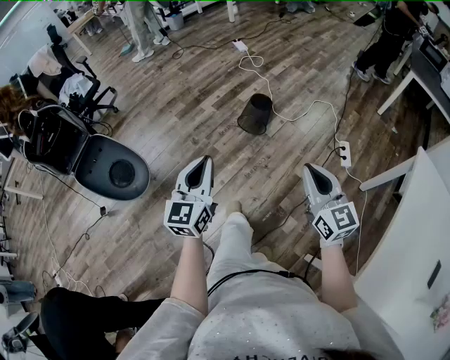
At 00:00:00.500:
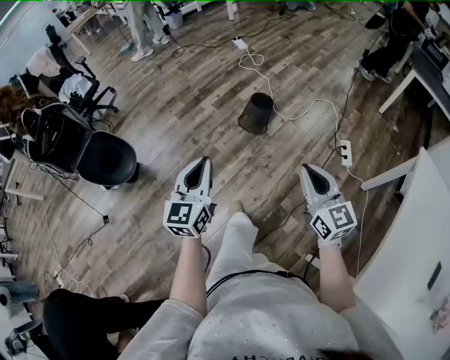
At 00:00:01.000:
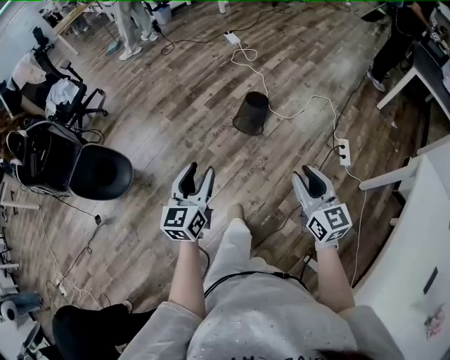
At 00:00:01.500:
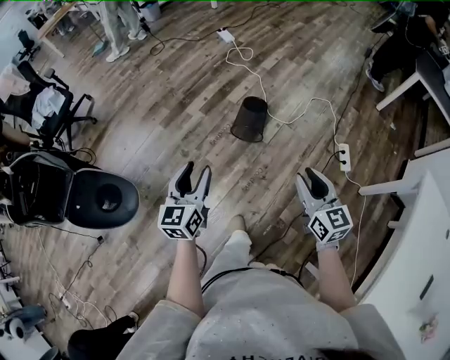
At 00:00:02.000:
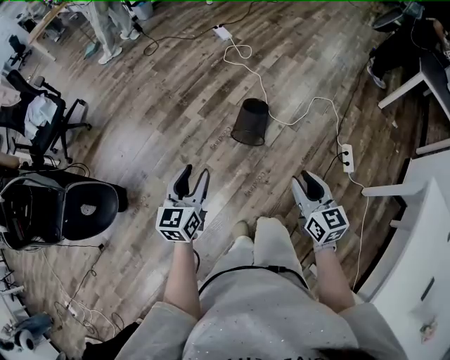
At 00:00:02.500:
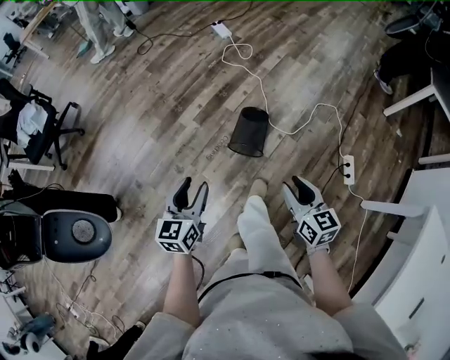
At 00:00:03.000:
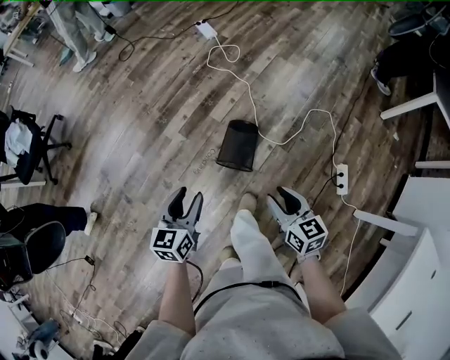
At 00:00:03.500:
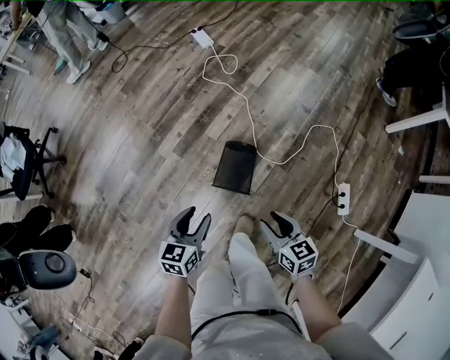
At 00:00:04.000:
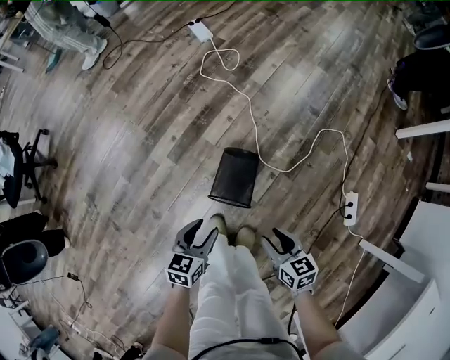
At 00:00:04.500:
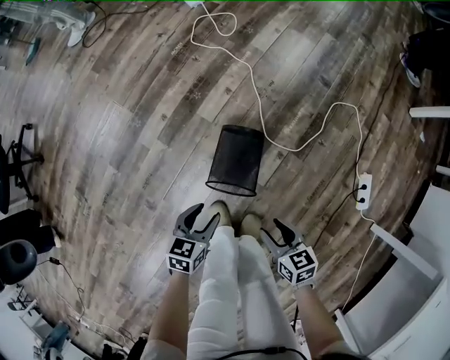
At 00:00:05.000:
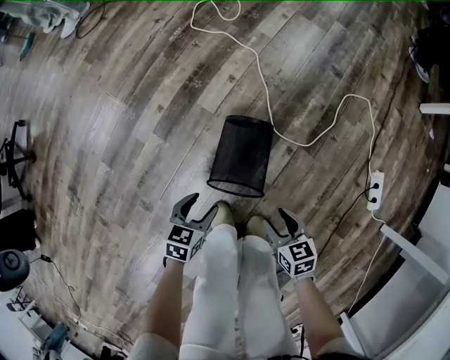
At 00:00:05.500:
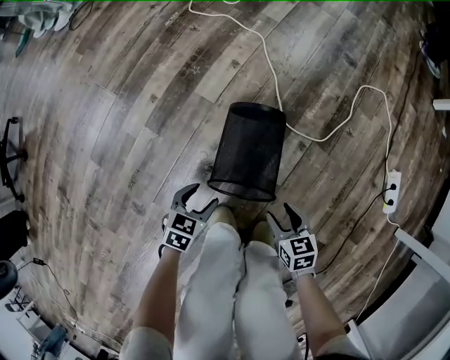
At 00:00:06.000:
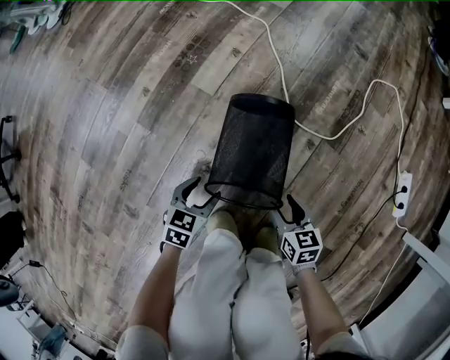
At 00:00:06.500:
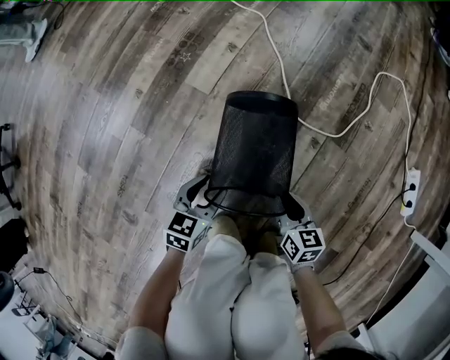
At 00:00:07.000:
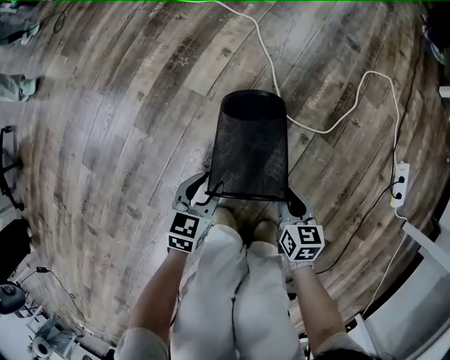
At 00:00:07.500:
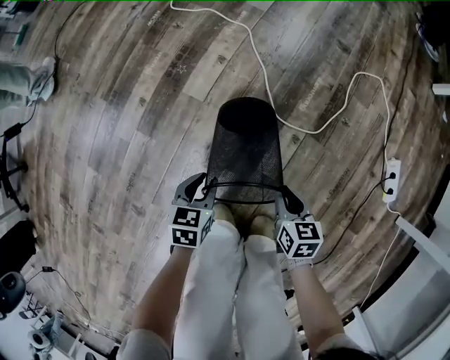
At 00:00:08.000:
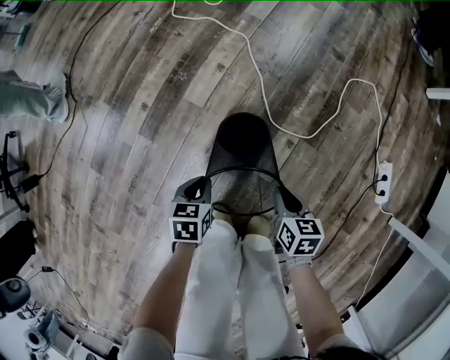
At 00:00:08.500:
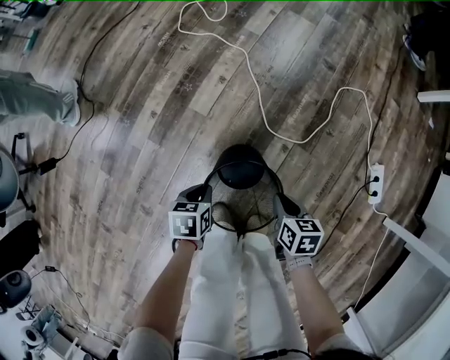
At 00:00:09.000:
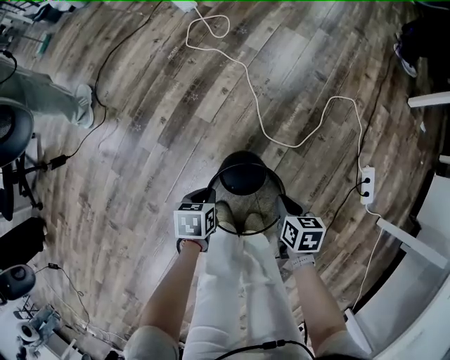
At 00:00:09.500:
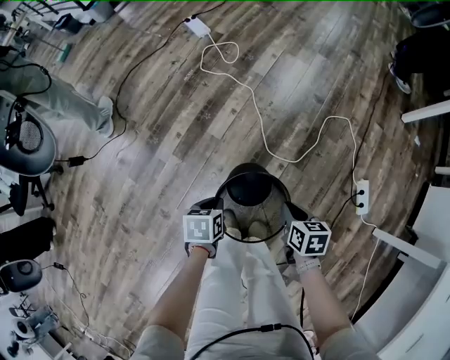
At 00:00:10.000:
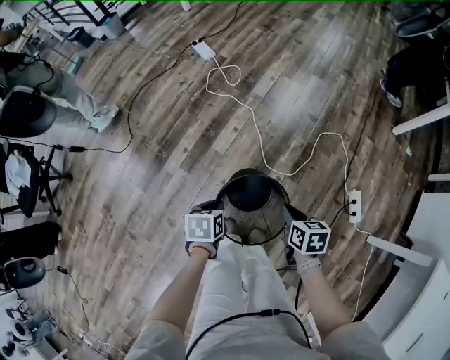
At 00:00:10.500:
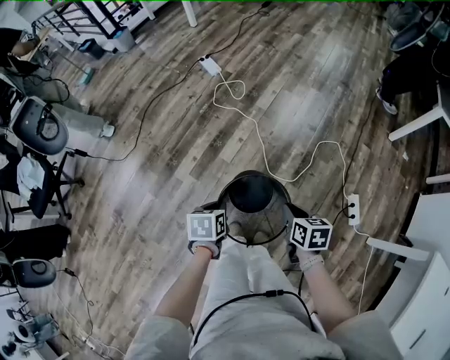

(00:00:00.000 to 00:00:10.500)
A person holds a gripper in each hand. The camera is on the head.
00:00:00.000 - 00:00:02.000: The right gripper moves forward and downward, approximately 35 cm, and opens up, while the left gripper heads forward, covering some 35 cm, and opens up.
00:00:02.000 - 00:00:04.000: The left gripper shifts approximately 50 cm forward, downward and to the right, and rotates about 30 degrees. Meanwhile the right gripper shifts about 50 cm forward and downward, and turns by roughly 30 degrees.
00:00:04.000 - 00:00:06.500: Both grippers travel together downward, some 50 cm.
00:00:06.500 - 00:00:08.500: The two grippers go roughly 20 cm upward. The left gripper turns by roughly 30 degrees, and closes.
00:00:08.500 - 00:00:10.500: The grippers both shift upward by roughly 40 cm.

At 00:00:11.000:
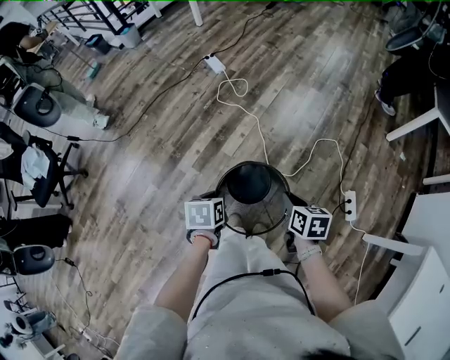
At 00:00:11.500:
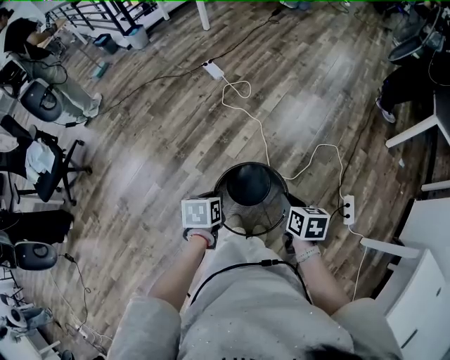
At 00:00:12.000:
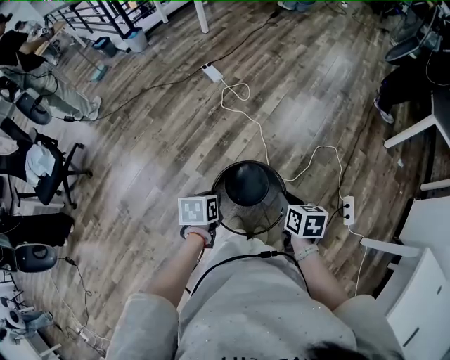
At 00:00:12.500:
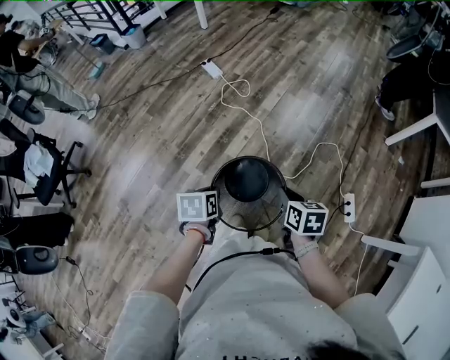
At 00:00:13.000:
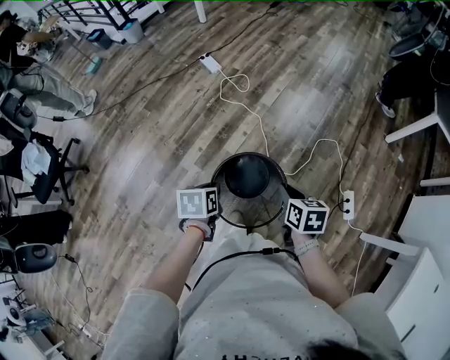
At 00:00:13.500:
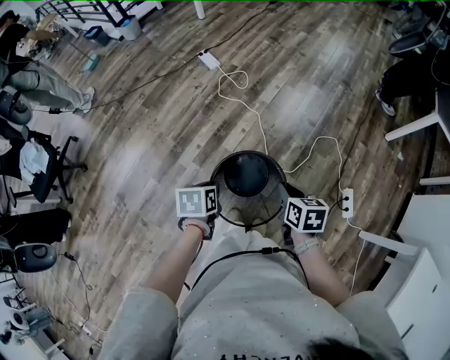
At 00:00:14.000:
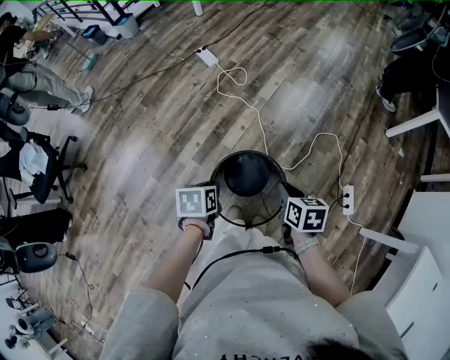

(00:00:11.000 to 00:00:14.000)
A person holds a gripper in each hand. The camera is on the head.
00:00:11.000 - 00:00:12.500: The left gripper moves some 5 cm, while the right gripper moves upward, some 5 cm.
00:00:12.500 - 00:00:14.000: There are only small adjustments of the grippers.

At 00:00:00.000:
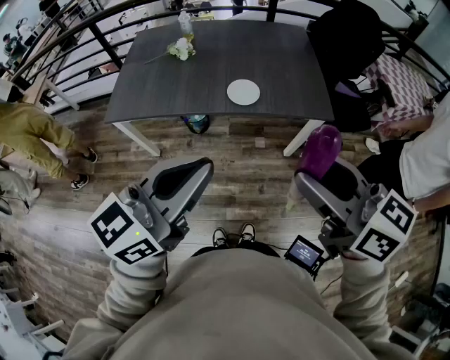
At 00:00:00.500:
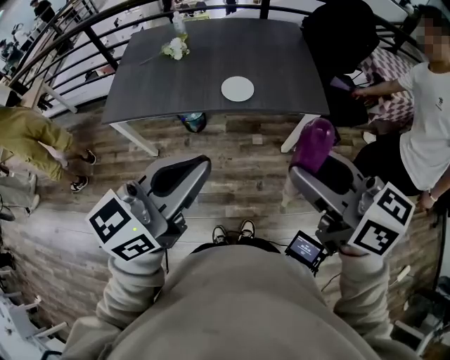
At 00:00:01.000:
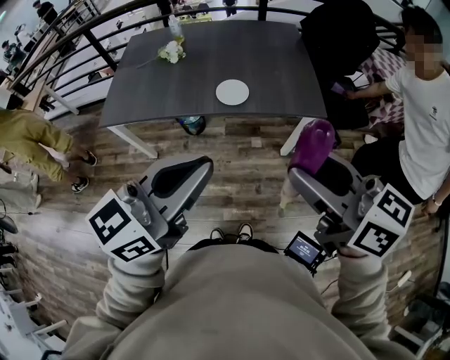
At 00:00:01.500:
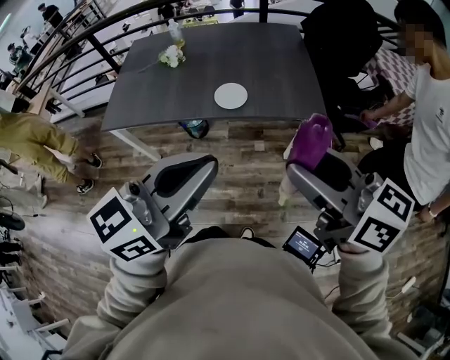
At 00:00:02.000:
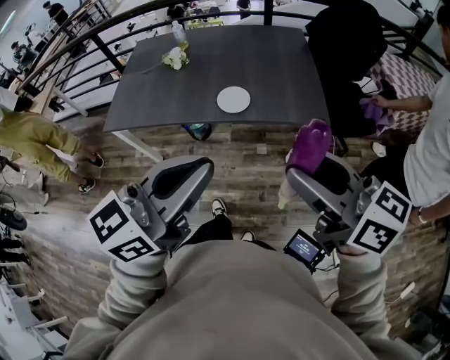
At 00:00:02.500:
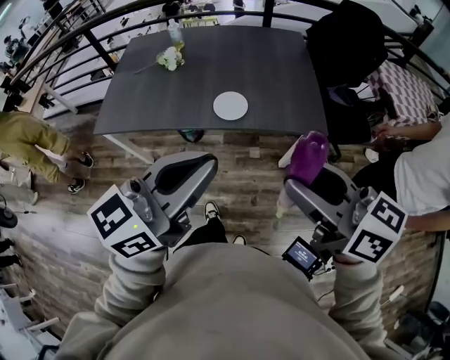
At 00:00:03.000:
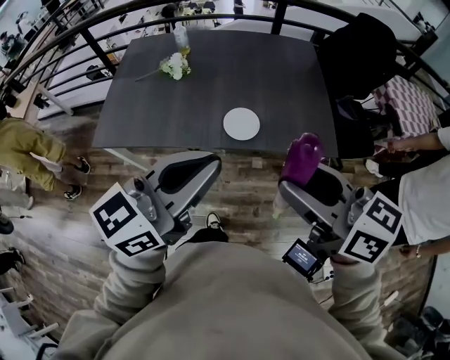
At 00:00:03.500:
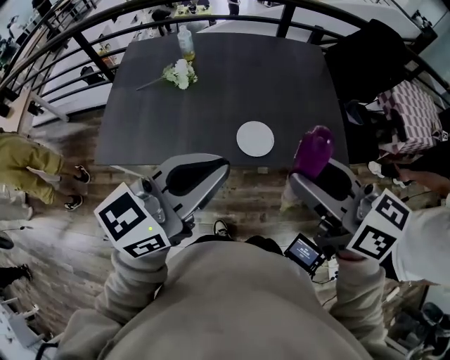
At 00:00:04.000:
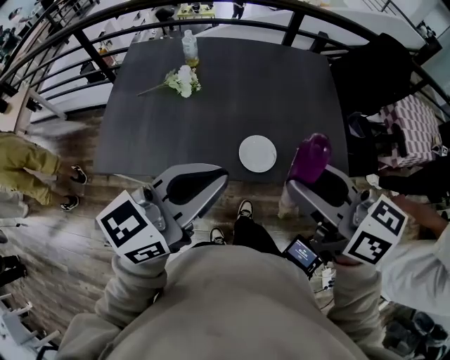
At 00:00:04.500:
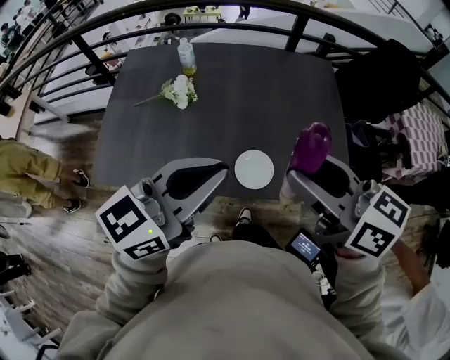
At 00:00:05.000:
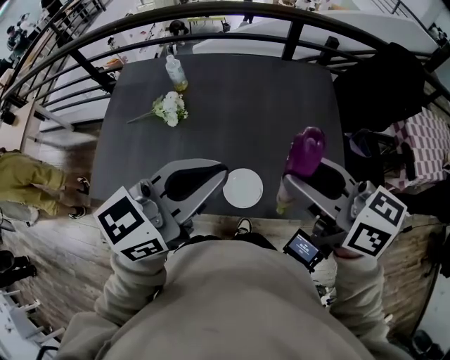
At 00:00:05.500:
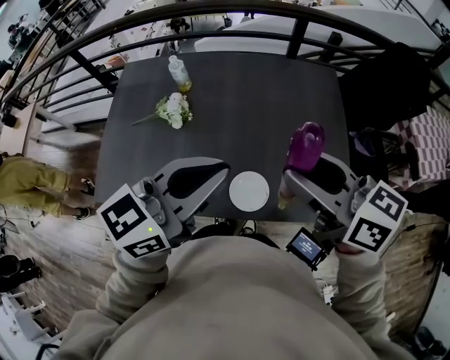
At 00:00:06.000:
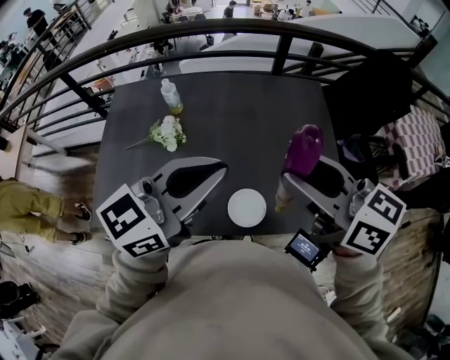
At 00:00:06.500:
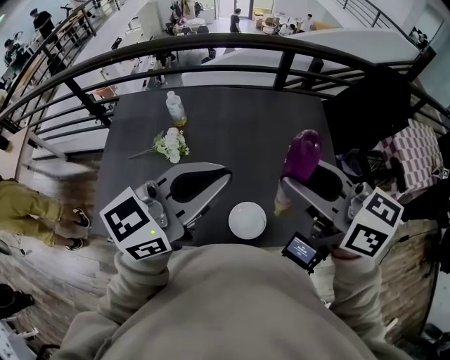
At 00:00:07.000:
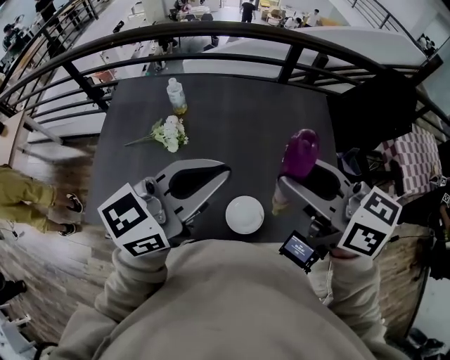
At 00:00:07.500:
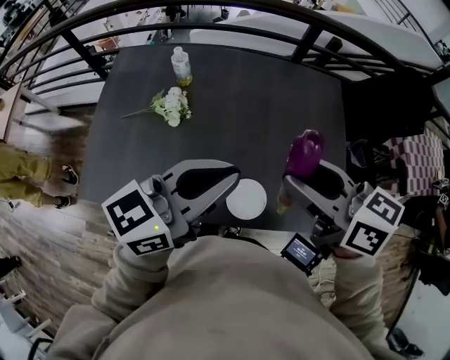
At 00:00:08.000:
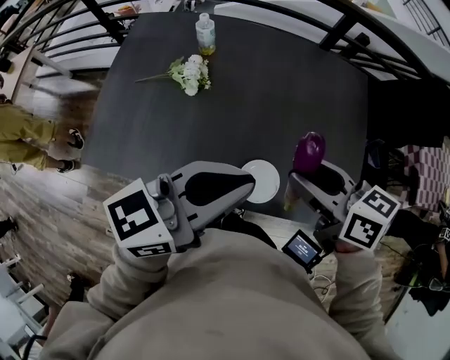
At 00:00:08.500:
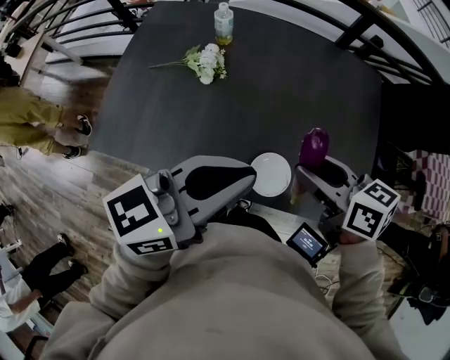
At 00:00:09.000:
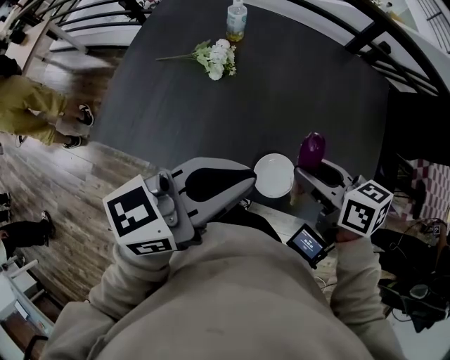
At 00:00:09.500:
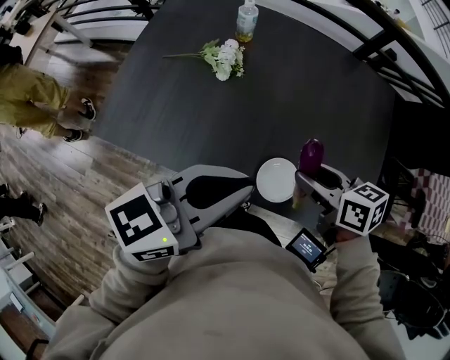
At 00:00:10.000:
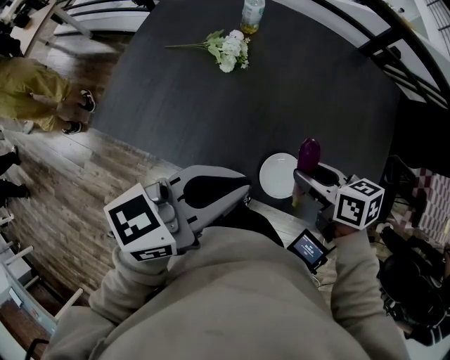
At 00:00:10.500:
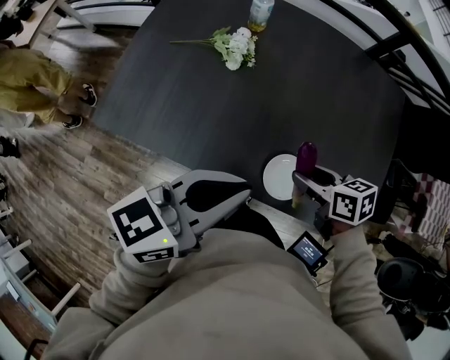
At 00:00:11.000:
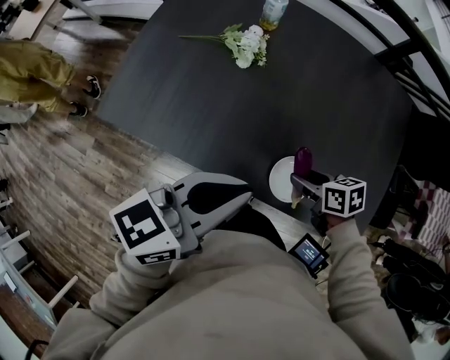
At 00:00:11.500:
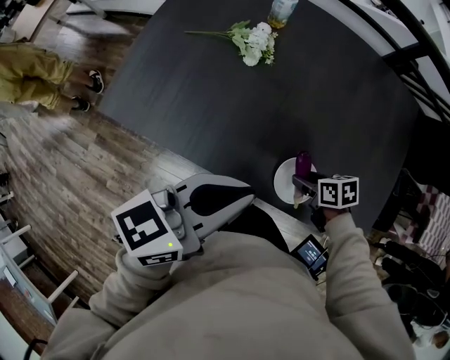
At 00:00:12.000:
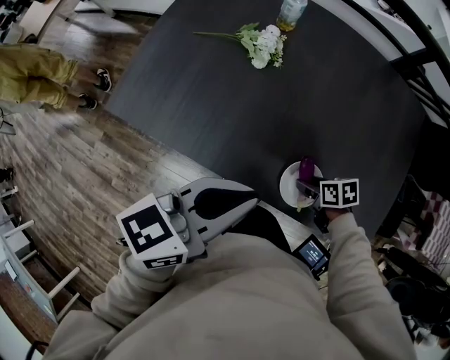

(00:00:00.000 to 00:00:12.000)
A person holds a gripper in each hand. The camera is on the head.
00:00:00.000 - 00:00:02.000: Both grippers travel together to the right, roughly 10 cm.
00:00:02.000 - 00:00:04.000: Both grippers travel together forward and to the left, roughly 30 cm.
00:00:04.000 - 00:00:06.000: The two grippers go roughly 20 cm forward.
00:00:06.000 - 00:00:08.000: The left gripper moves downward, roughly 5 cm, while the right gripper travels downward by about 15 cm, and swivels some 20 degrees.
00:00:08.000 - 00:00:10.000: The right gripper moves downward, roughly 15 cm. The left gripper shifts about 10 cm to the left and downward.
00:00:10.000 - 00:00:12.000: The left gripper moves approximately 5 cm. The right gripper travels downward by roughly 20 cm, and changes its angle by some 20 degrees.

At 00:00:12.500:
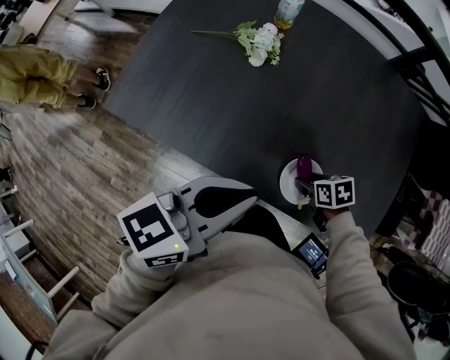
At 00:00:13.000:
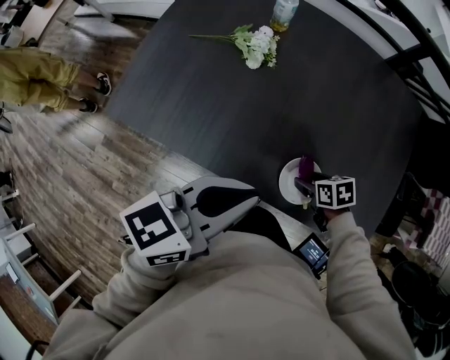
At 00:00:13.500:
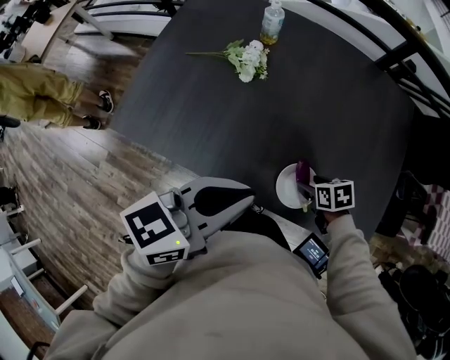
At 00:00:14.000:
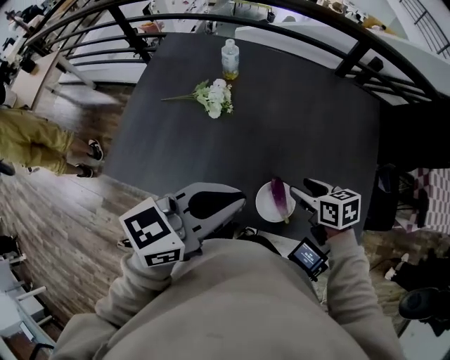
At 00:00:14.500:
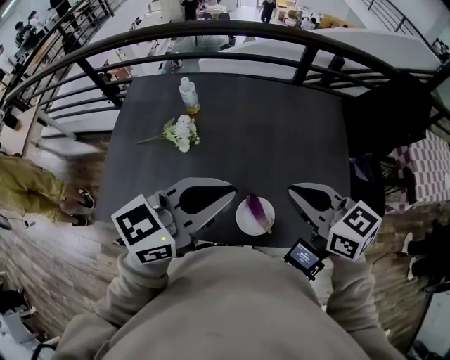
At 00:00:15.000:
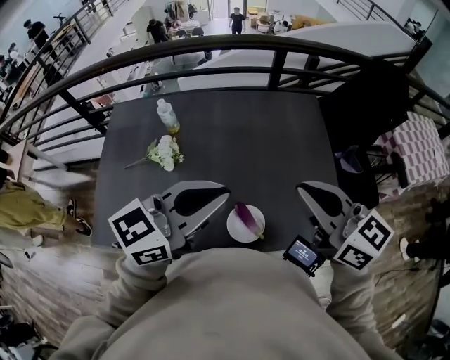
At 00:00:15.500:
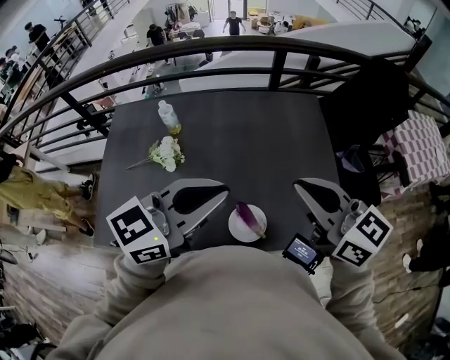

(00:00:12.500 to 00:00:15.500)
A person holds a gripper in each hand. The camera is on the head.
00:00:12.500 - 00:00:14.000: The left gripper shifts roughly 5 cm upward. The right gripper travels upward by some 15 cm, and changes its angle by approximately 30 degrees.
00:00:14.000 - 00:00:15.500: The left gripper moves upward and to the right, about 10 cm, and swivels some 20 degrees, while the right gripper shifts about 25 cm upward, tips its fingers upward by approximately 40 degrees, and closes.
